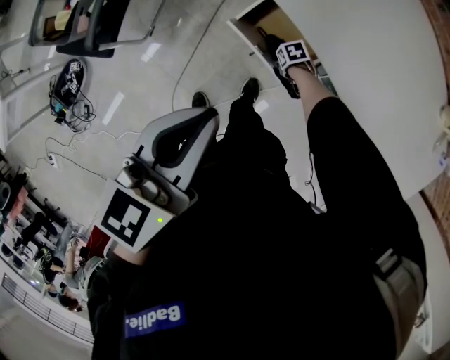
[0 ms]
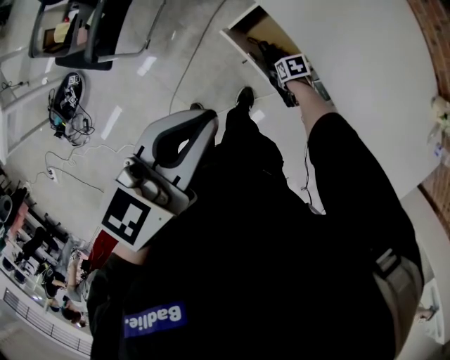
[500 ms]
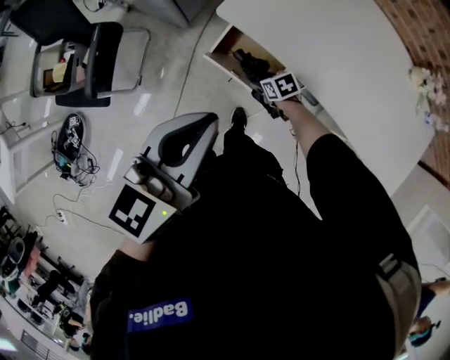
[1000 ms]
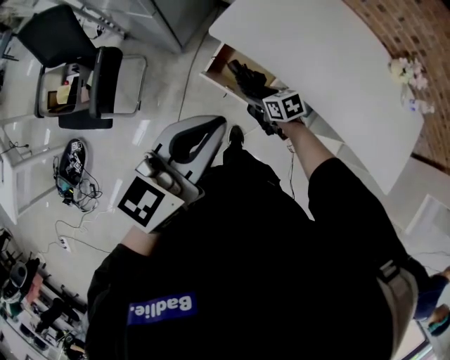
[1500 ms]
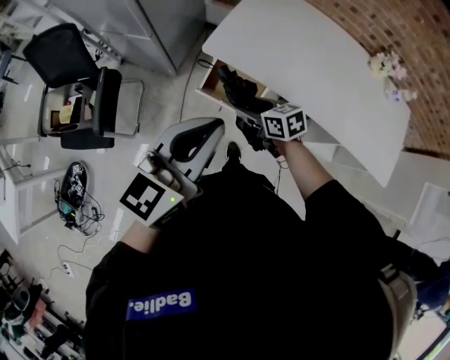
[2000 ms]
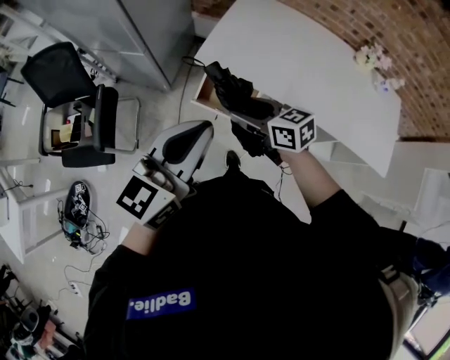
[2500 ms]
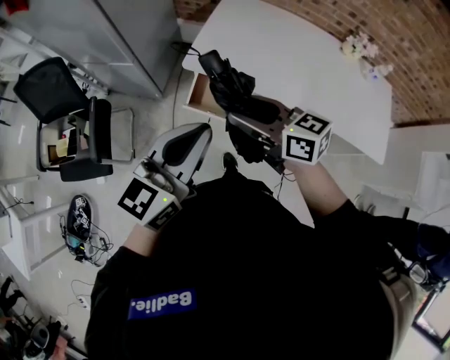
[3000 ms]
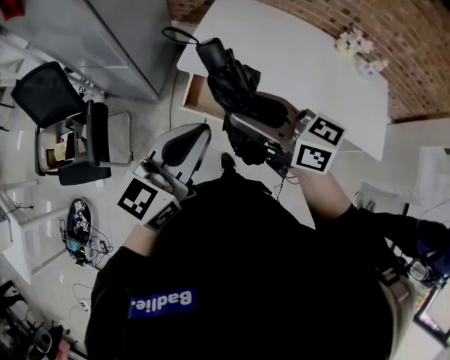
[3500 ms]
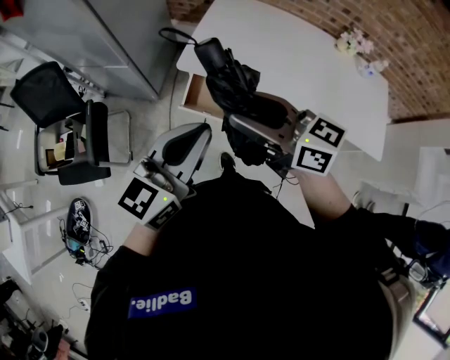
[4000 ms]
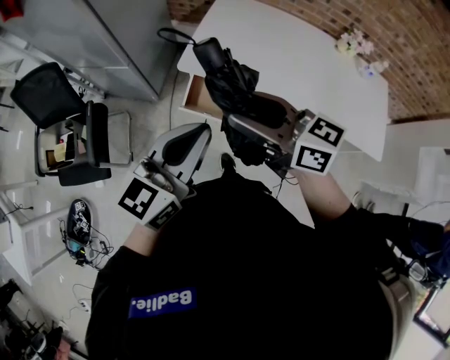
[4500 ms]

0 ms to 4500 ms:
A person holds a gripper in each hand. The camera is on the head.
0 ms to 2000 ms: The left gripper heads upward, covering about 10 cm, and rotates roughly 30 degrees. The right gripper moves upward, approximately 40 cm, and points its fingers about 40 degrees further upward.
2000 ms to 4500 ms: The right gripper travels upward by about 25 cm, and tips its fingers upward by some 30 degrees.

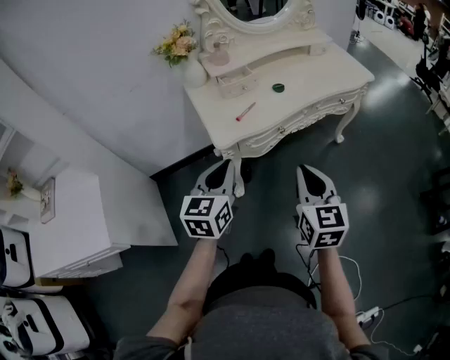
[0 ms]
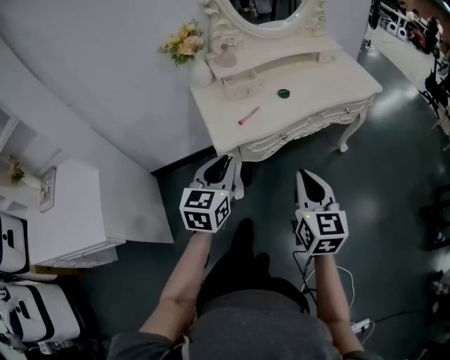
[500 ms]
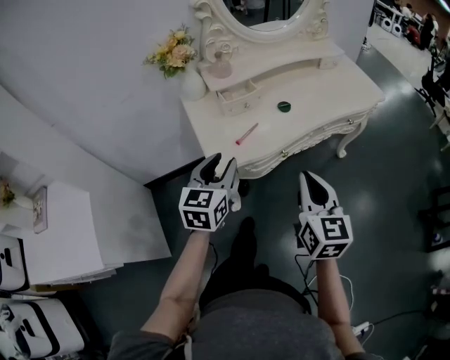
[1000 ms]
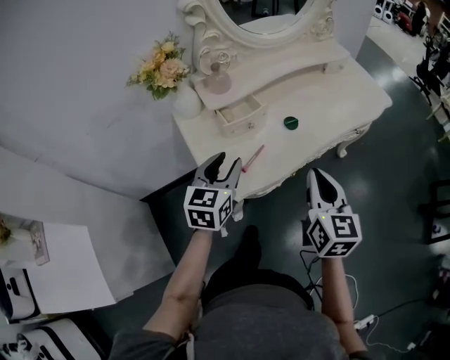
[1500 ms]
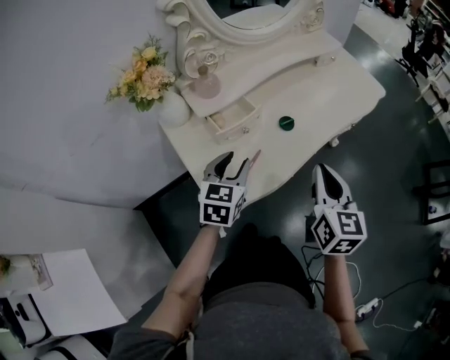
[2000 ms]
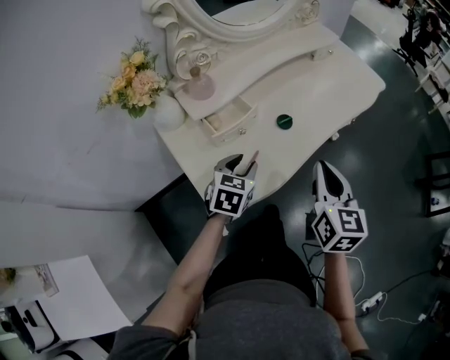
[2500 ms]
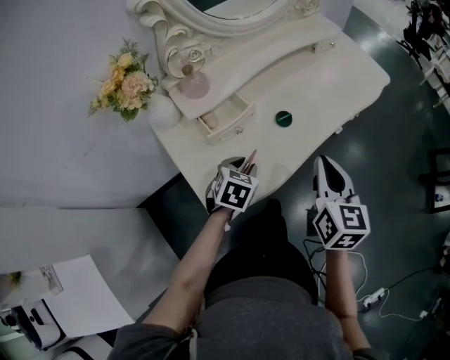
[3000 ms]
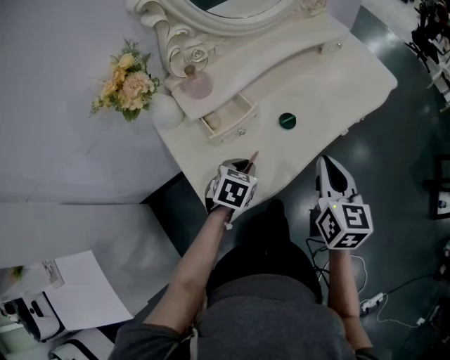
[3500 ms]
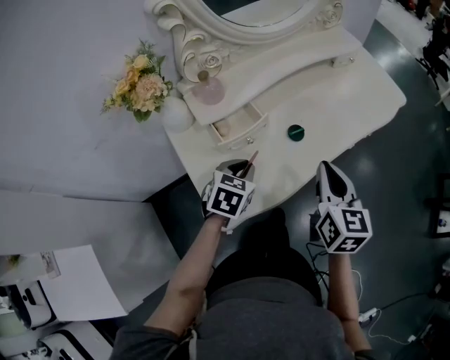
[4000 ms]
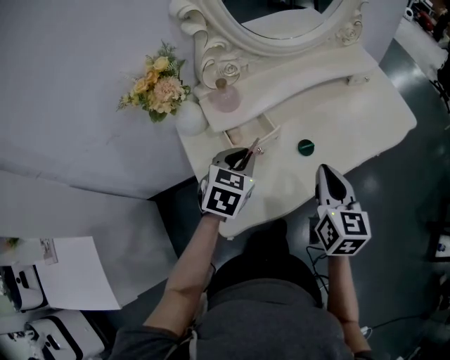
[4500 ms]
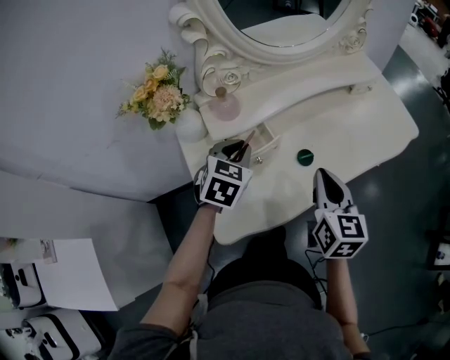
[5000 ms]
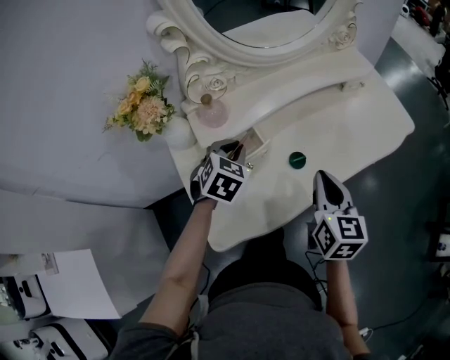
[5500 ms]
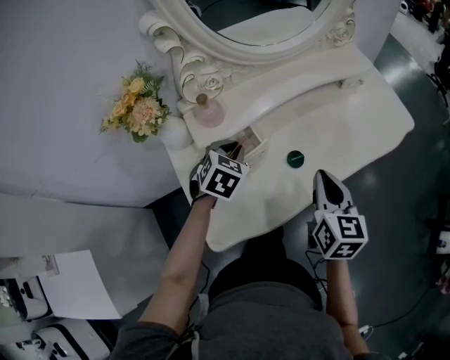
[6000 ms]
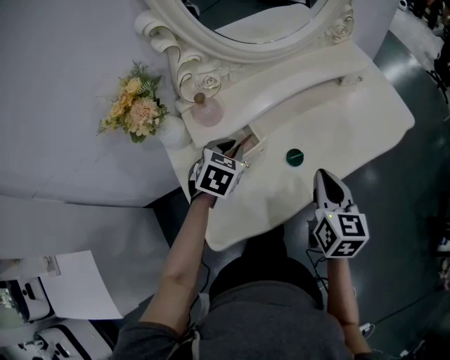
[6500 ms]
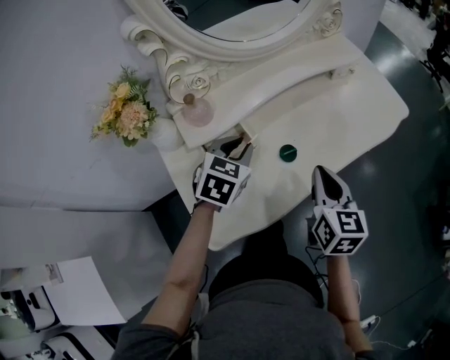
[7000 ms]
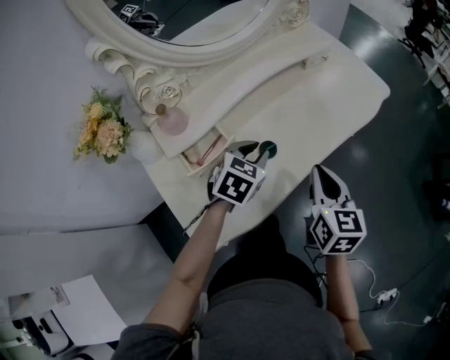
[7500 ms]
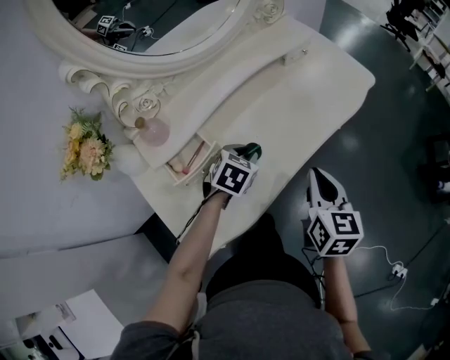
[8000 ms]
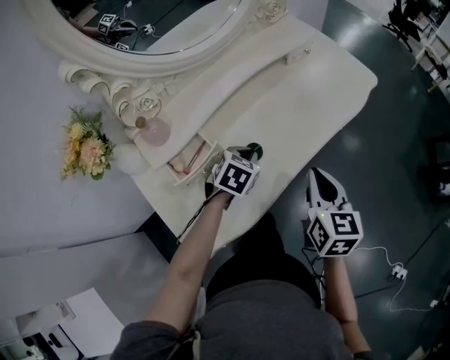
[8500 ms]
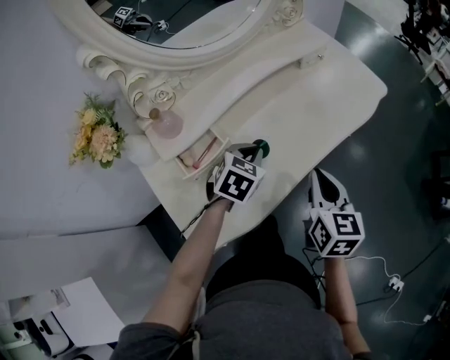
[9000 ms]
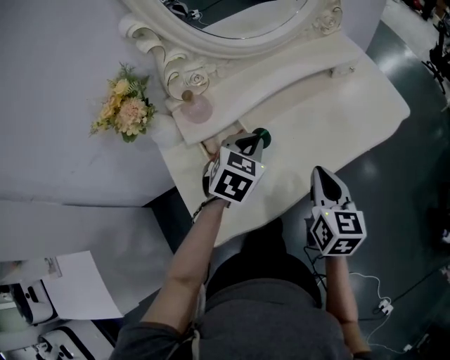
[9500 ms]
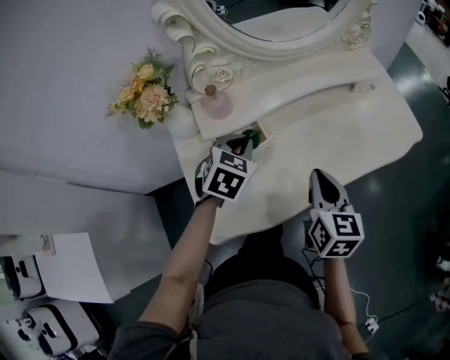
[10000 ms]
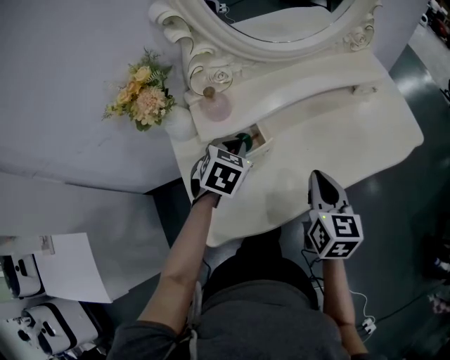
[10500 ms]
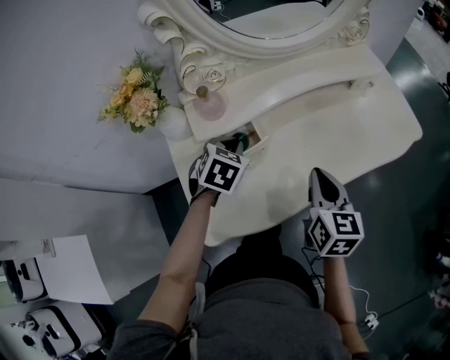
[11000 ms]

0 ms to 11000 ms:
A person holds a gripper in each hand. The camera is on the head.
0 ms to 2000 ms: The grippers both shift forward by some 25 cm. The left gripper swivels some 20 degrees, and opens.
2000 ms to 3500 ms: The right gripper goes about 5 cm forward. The left gripper goes roughly 10 cm downward, changes its angle by about 30 degrees, and closes.
3500 ms to 5500 ms: The left gripper goes roughly 15 cm forward, upward and to the left. Meanwhile the right gripper heads forward, covering approximately 10 cm.
5500 ms to 7500 ms: The left gripper heads to the right, covering roughly 15 cm, and turns by roughly 20 degrees. The right gripper heads to the right, covering approximately 5 cm.
9000 ms to 11000 ms: The left gripper shifts approximately 15 cm to the left, and changes its angle by approximately 20 degrees; the right gripper travels to the left by roughly 10 cm.

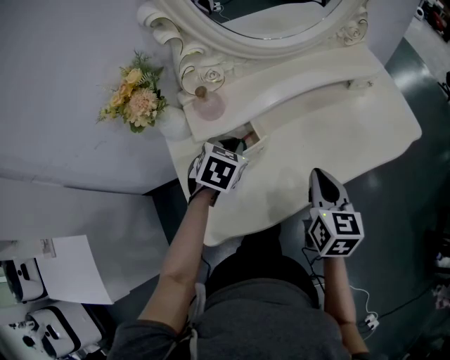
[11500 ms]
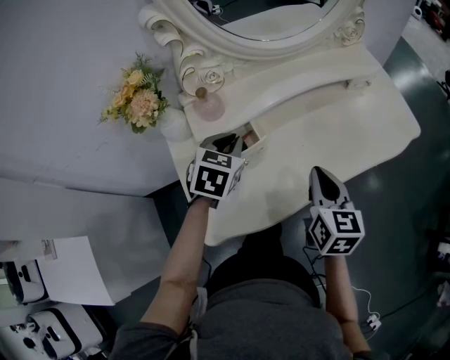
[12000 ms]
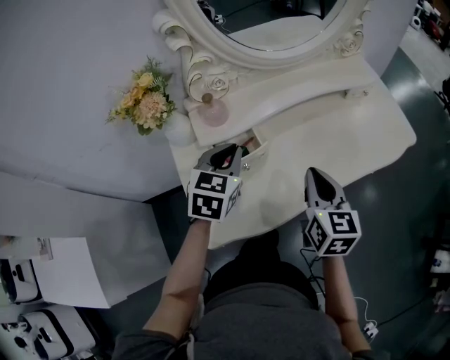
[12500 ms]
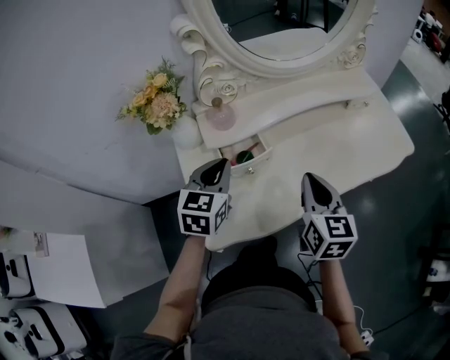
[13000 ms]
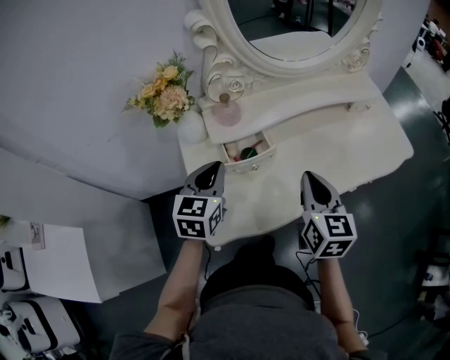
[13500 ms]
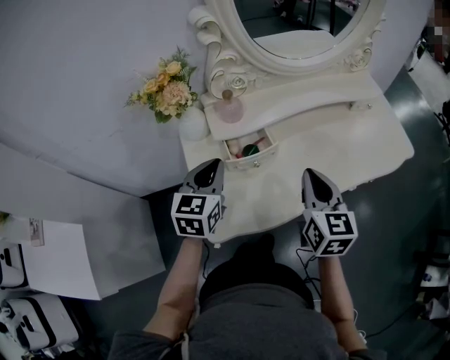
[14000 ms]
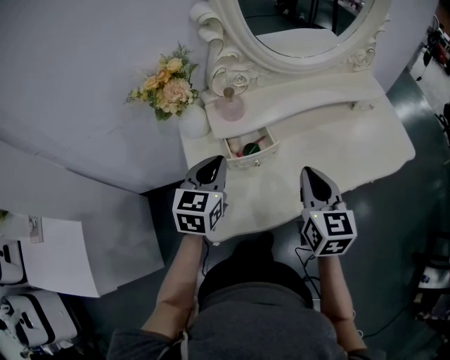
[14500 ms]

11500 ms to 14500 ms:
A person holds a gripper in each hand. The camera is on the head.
11500 ms to 13000 ms: The left gripper moves upward and backward, some 10 cm, and turns by some 30 degrees; the right gripper moves approximately 5 cm.
13000 ms to 14500 ms: The grippers make only small movements.

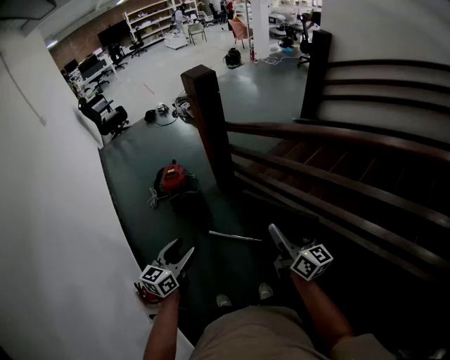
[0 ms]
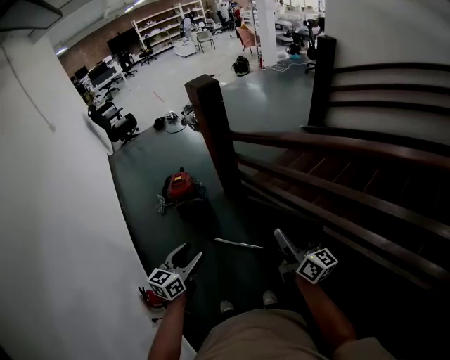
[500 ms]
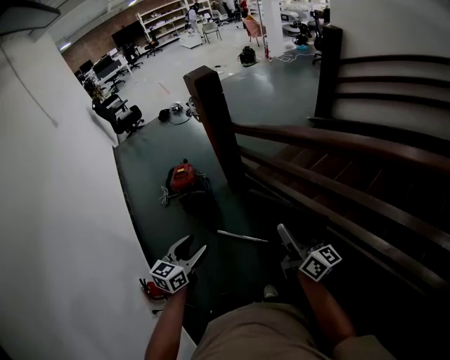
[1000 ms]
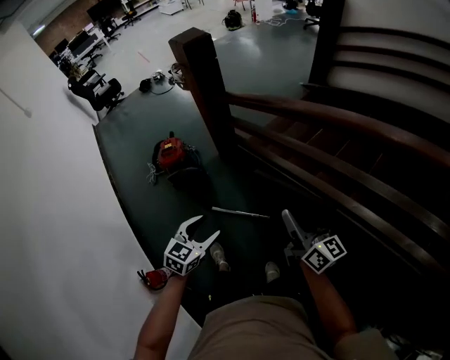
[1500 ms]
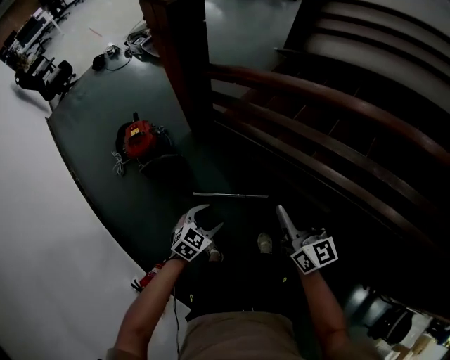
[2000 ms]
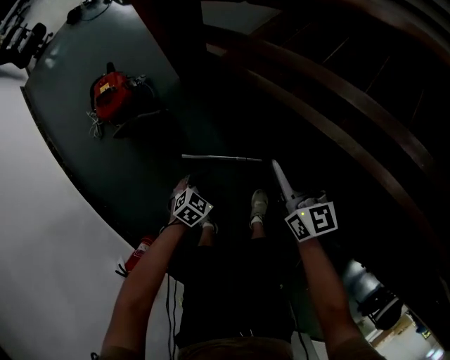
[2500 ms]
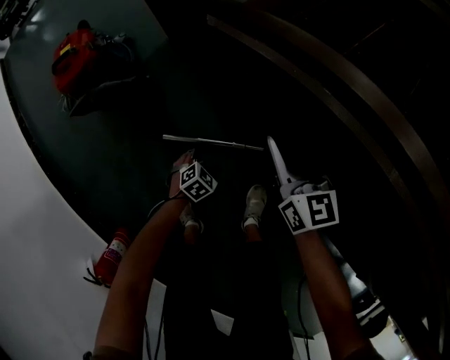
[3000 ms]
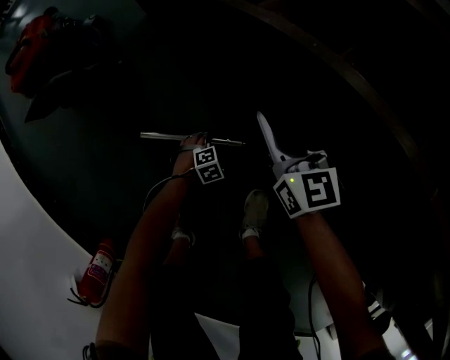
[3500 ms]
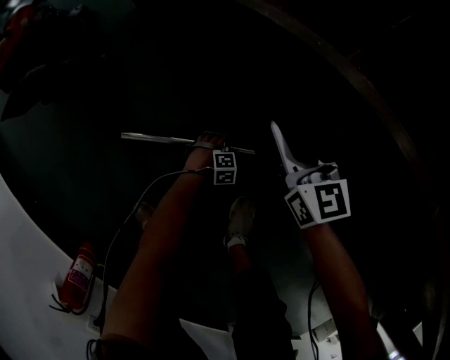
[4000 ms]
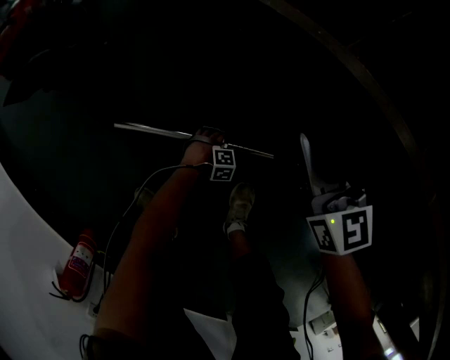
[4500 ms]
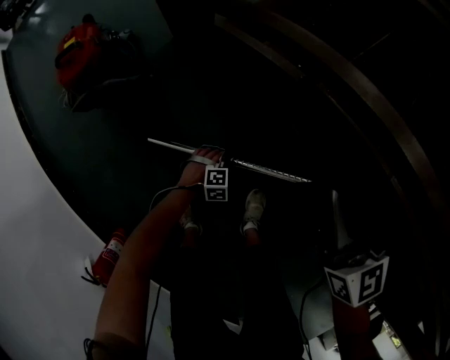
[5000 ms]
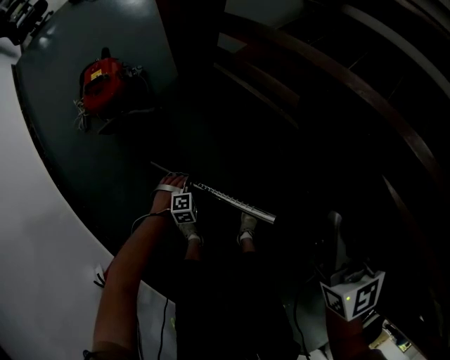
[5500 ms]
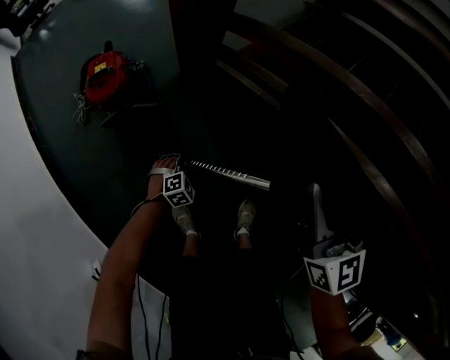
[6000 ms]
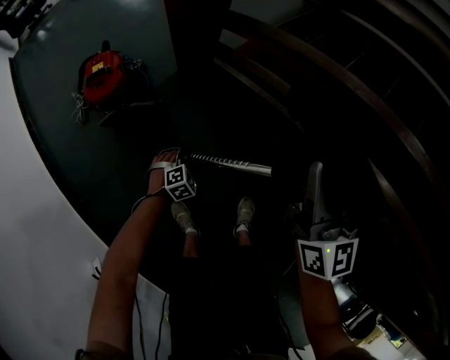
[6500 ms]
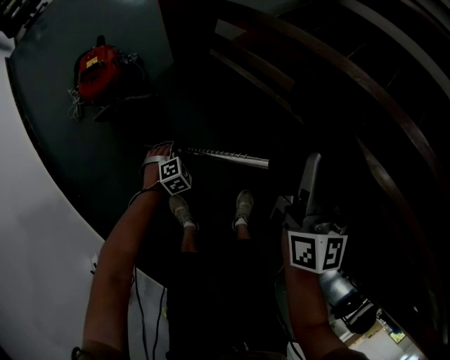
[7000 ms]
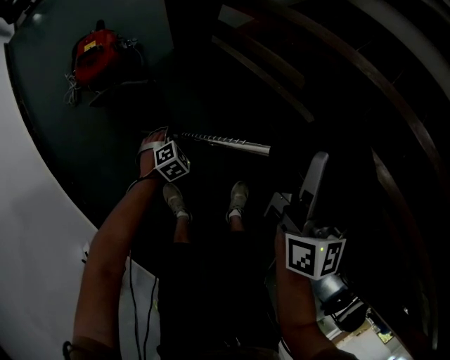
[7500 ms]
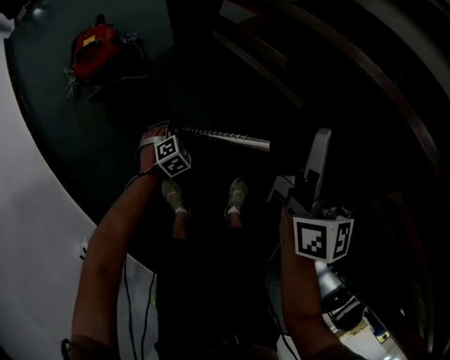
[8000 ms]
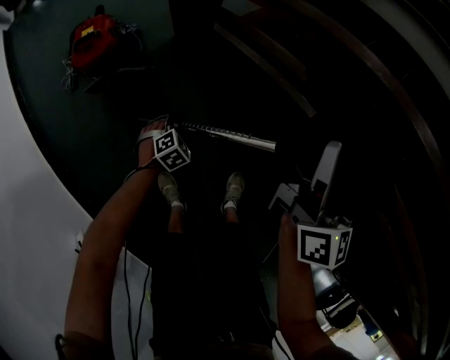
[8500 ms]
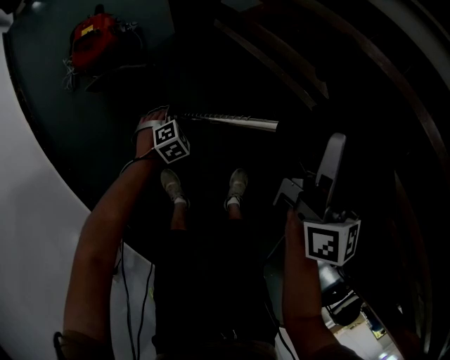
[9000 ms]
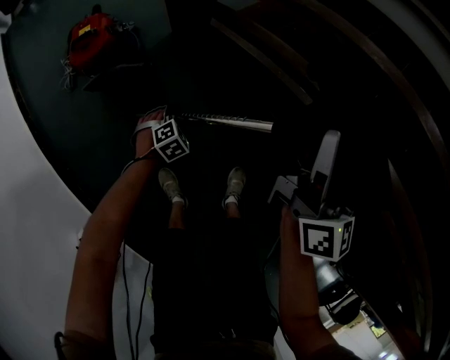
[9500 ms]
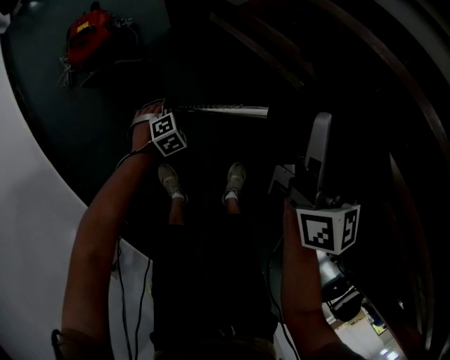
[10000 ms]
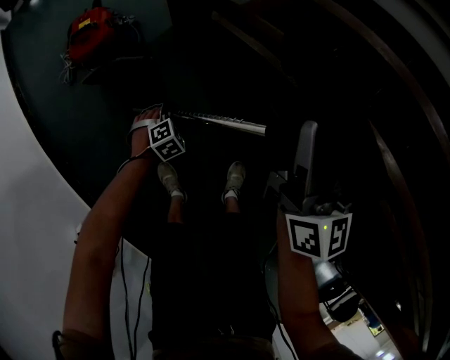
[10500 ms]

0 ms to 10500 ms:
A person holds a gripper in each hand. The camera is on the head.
0 ms to 2000 ms: The right gripper moves about 25 cm, and changes its angle by some 30 degrees. The left gripper is displaced downward by some 30 cm, and changes its angle by approximately 50 degrees.
2000 ms to 4000 ms: The grippers both shift downward by about 80 cm. The right gripper rotates about 20 degrees; the left gripper swivels about 50 degrees.
4000 ms to 6500 ms: Both grippers travel together upward, approximately 50 cm. The right gripper changes its angle by approximately 30 degrees; the left gripper changes its angle by roughly 20 degrees.
6500 ms to 8500 ms: The right gripper ends up some 5 cm from where it was.
8500 ms to 10500 ms: The grippers make only small movements.
